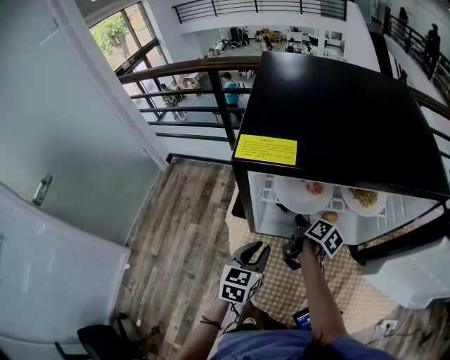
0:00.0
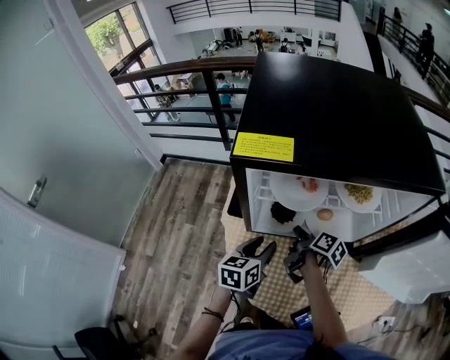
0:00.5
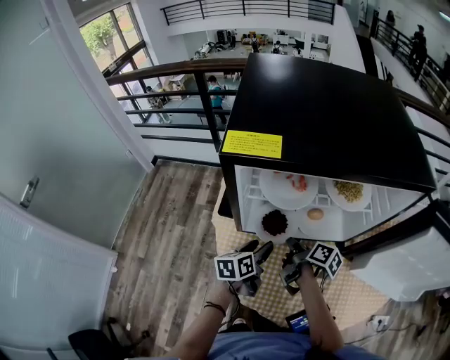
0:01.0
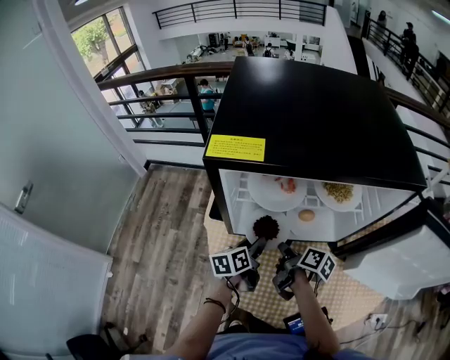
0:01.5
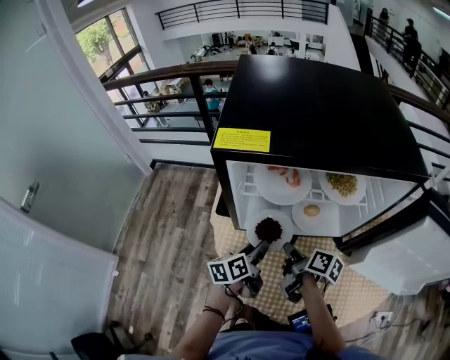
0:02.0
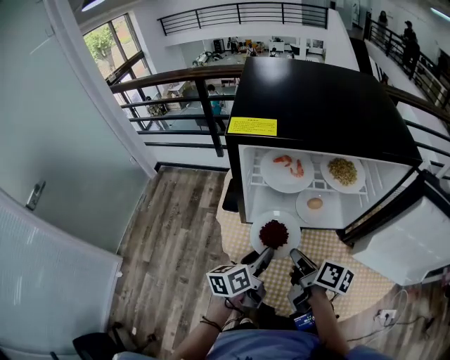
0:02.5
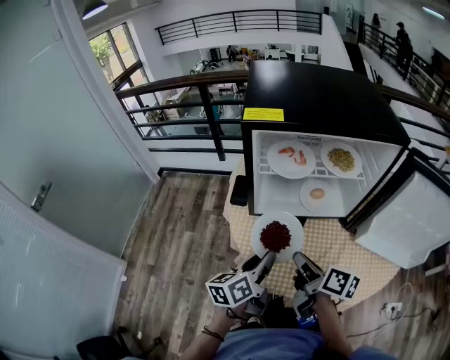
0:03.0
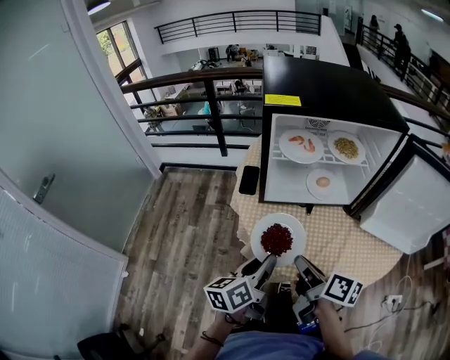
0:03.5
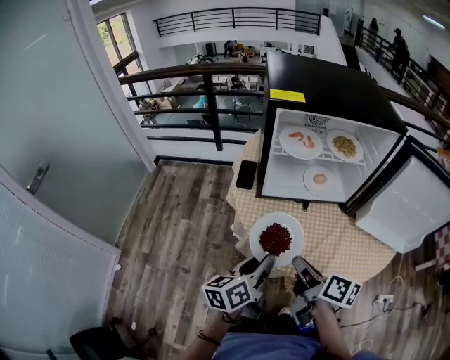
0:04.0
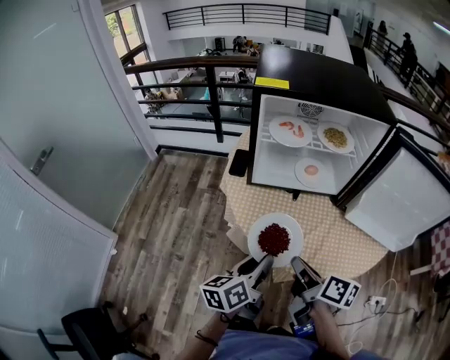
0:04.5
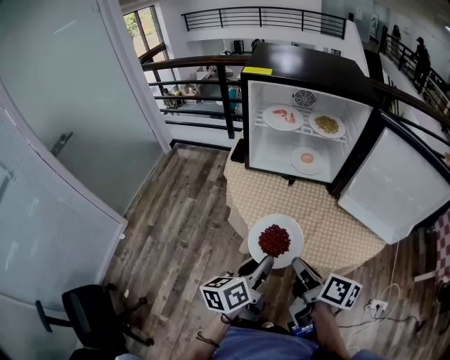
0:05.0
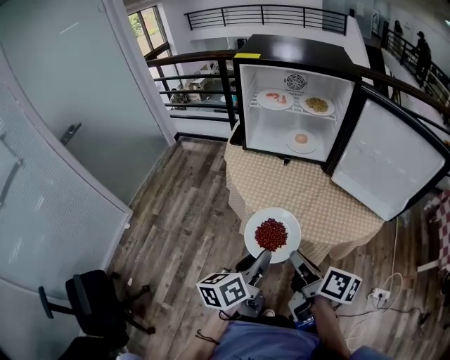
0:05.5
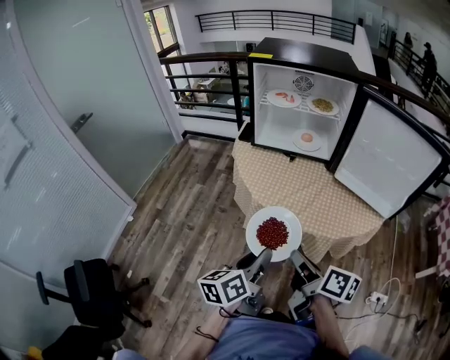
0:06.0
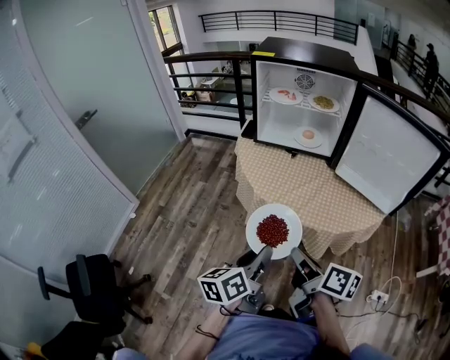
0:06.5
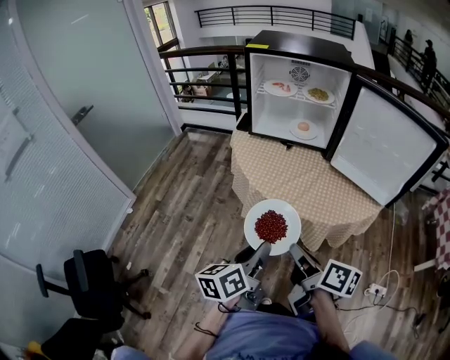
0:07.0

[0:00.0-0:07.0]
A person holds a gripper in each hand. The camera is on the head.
0:00.0 to 0:02.0: The right gripper goes some 10 cm backward; the left gripper changes its angle by about 40 degrees, and opens and closes again.
0:02.0 to 0:03.5: The two grippers go some 25 cm backward and upward.
0:03.5 to 0:05.0: Both grippers move backward and to the right, roughly 20 cm.
0:05.0 to 0:07.0: Both grippers move backward, some 15 cm.

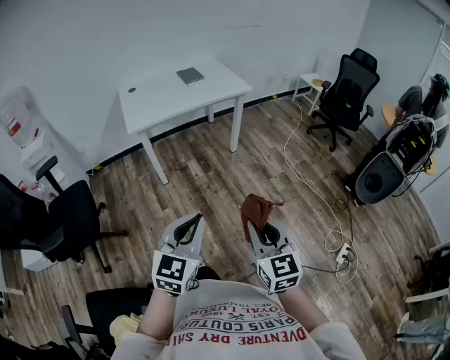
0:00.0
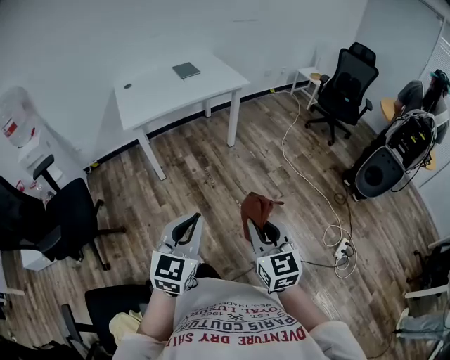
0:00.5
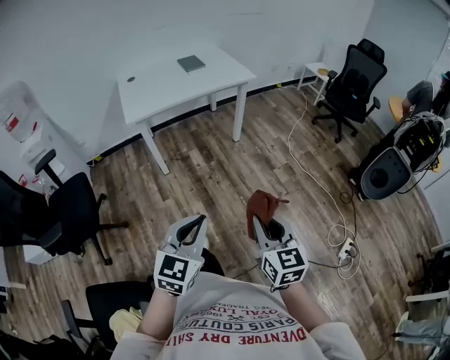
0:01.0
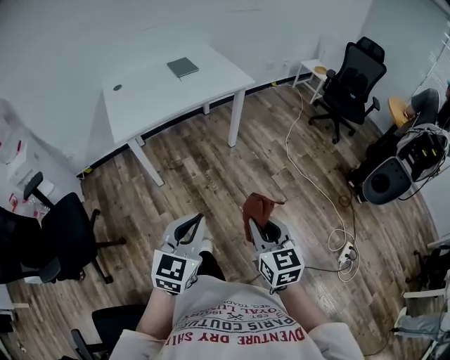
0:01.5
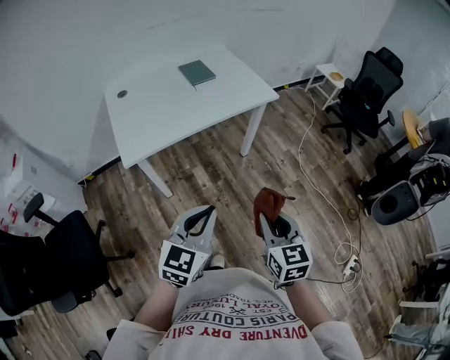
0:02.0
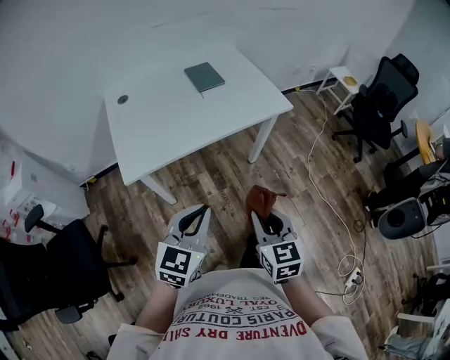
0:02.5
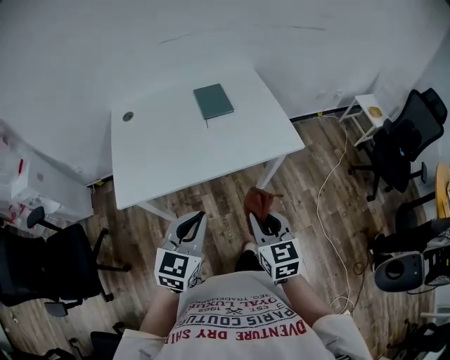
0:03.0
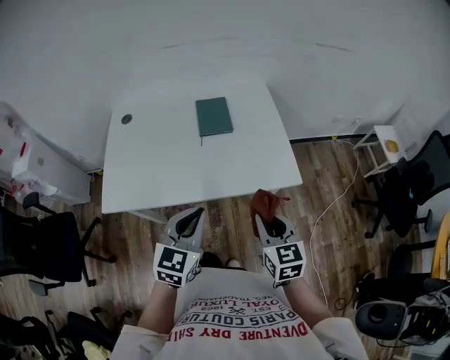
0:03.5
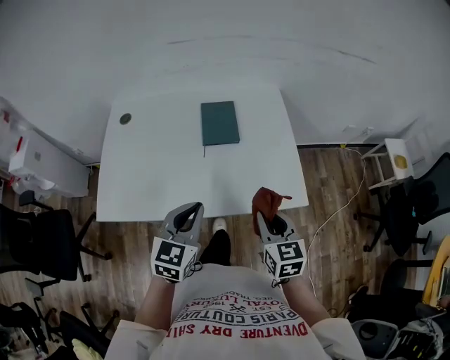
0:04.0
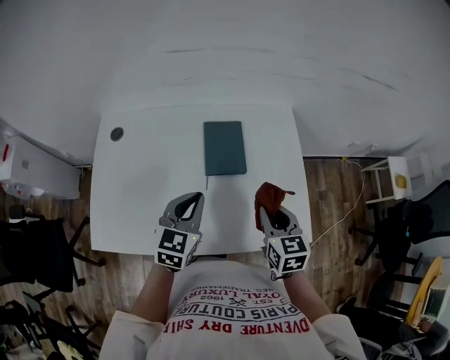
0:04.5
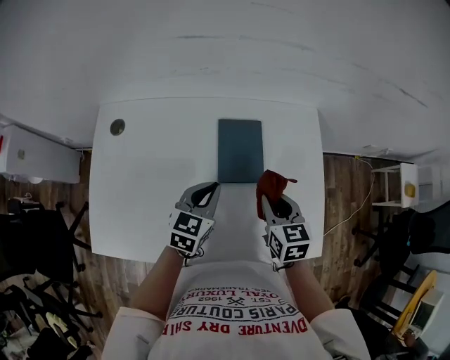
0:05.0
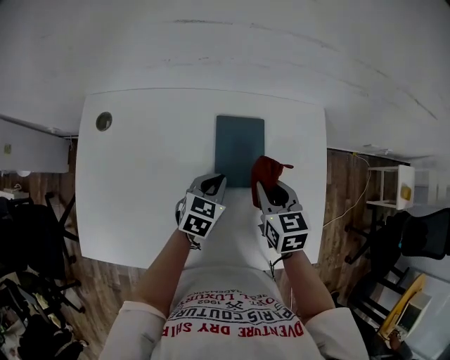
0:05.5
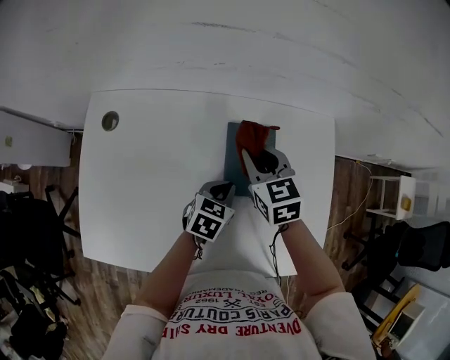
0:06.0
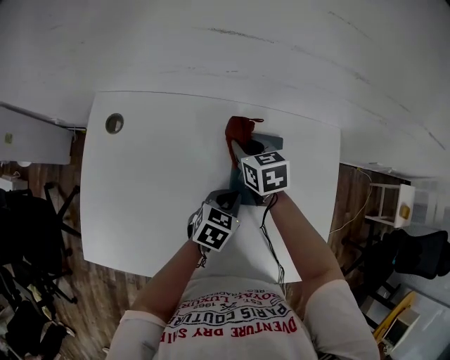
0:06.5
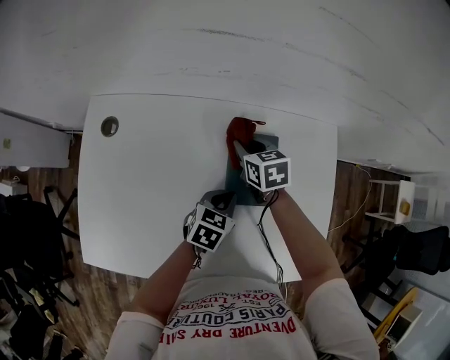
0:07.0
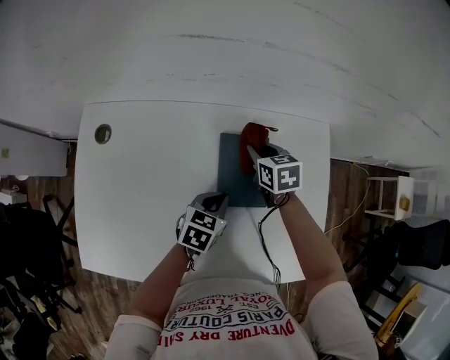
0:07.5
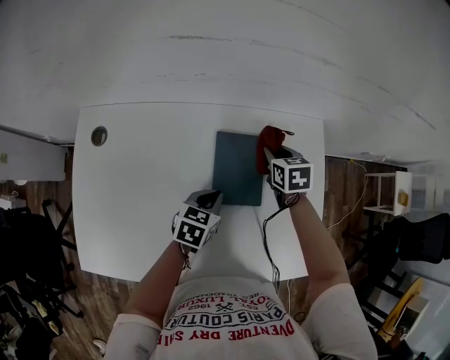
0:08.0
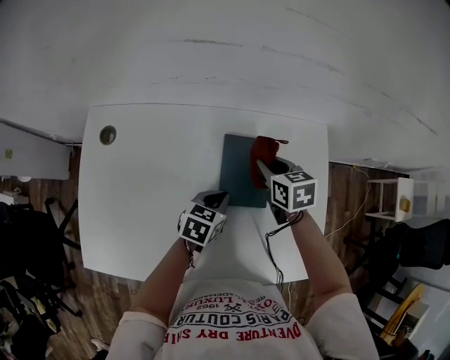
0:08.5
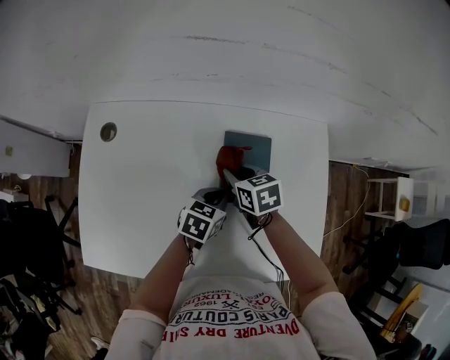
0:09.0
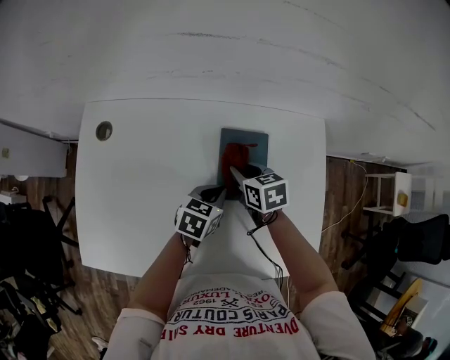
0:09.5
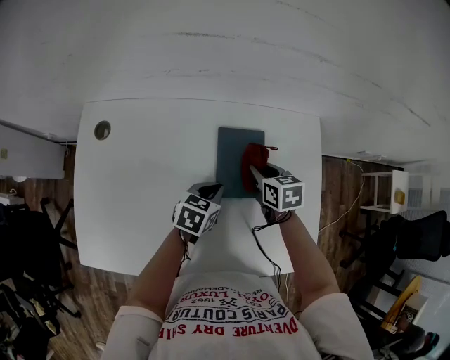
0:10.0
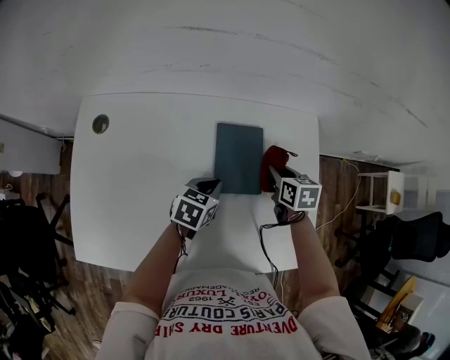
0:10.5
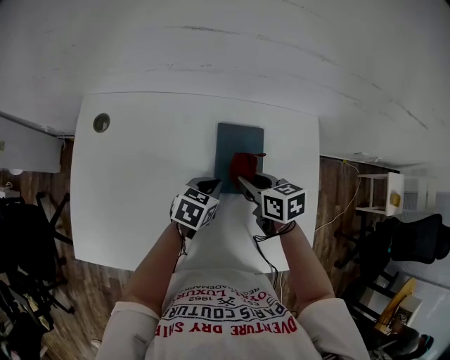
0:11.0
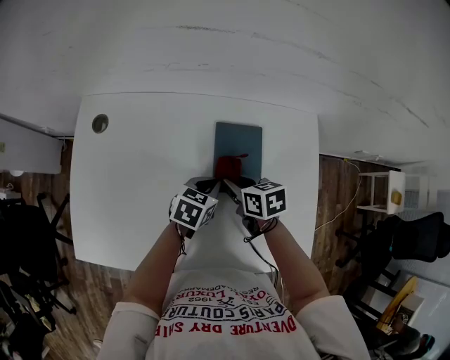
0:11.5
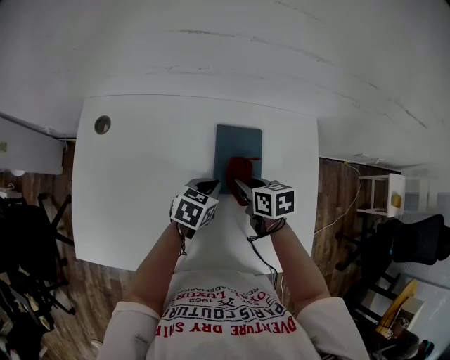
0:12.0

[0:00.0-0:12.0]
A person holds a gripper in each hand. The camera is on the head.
0:00.0 to 0:02.0: The two grippers go some 35 cm forward.
0:02.0 to 0:04.0: The pair of grippers is taken about 50 cm. The left gripper rotates about 30 degrees. Meanwhile the right gripper turns by approximately 20 degrees.
0:04.0 to 0:06.0: The right gripper heads forward and to the left, covering about 50 cm, and swivels roughly 20 degrees. Meanwhile the left gripper heads forward and downward, covering roughly 40 cm, and swivels about 30 degrees.
0:06.0 to 0:08.0: The right gripper shifts about 15 cm to the right, downward and forward, and turns by approximately 20 degrees.
0:08.0 to 0:10.0: The right gripper is displaced backward by some 10 cm, and goes to the left and returns, approximately 15 cm each way.
0:10.0 to 0:12.0: The right gripper goes some 5 cm backward, and moves about 5 cm to the right and comes back.

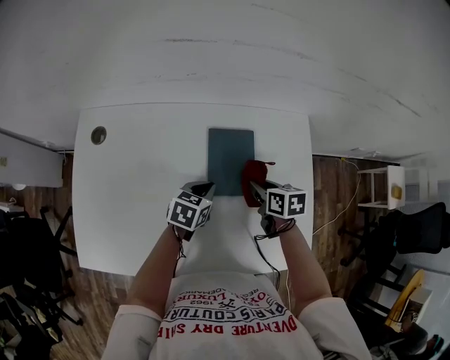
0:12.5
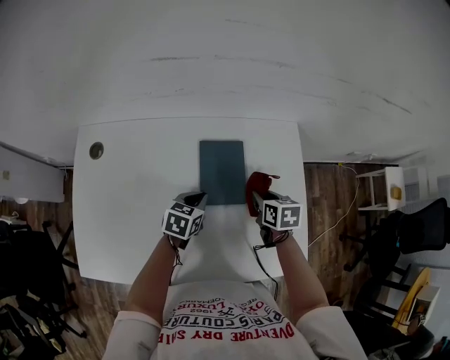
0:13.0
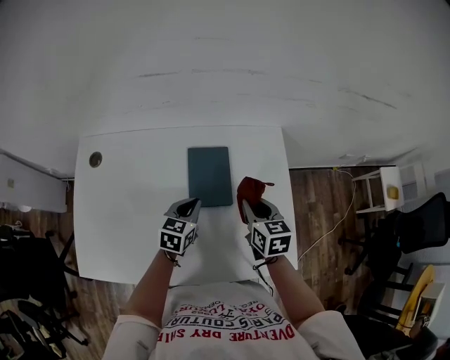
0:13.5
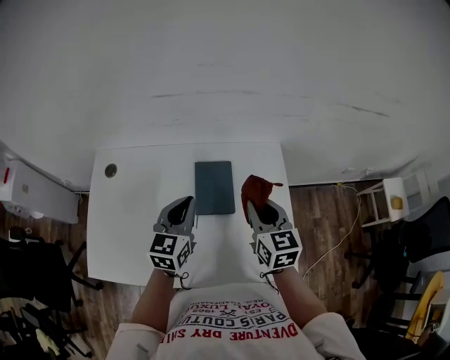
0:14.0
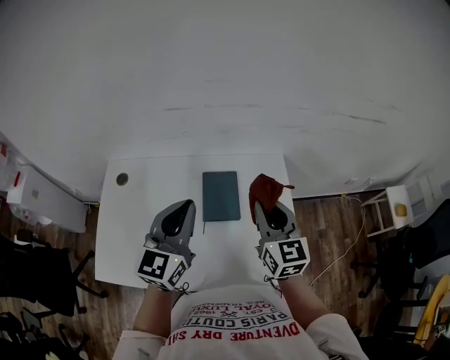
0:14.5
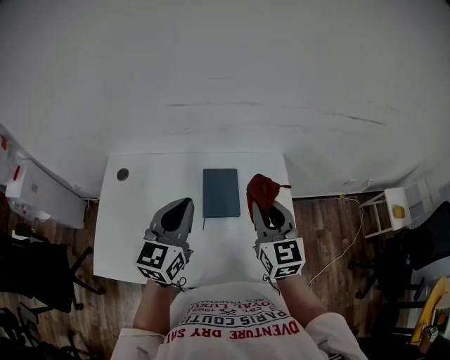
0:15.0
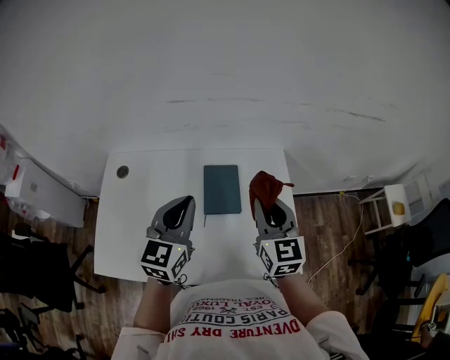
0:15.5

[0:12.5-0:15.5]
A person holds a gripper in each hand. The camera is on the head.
0:12.5 to 0:14.0: Both grippers travel together upward, approximately 20 cm. The right gripper turns by some 40 degrees; the left gripper rotates approximately 40 degrees.
0:14.0 to 0:15.5: The left gripper is displaced upward and backward by about 10 cm. Meanwhile the right gripper heads upward, covering some 5 cm.

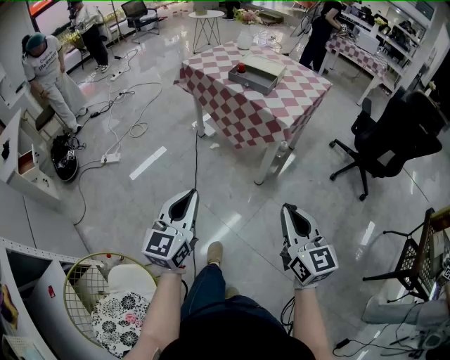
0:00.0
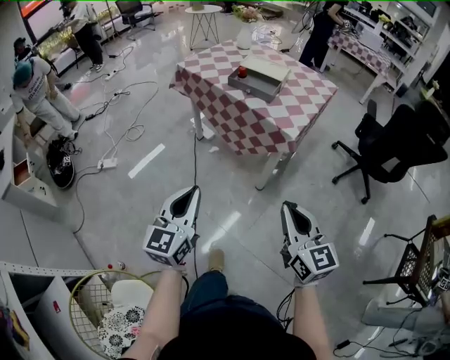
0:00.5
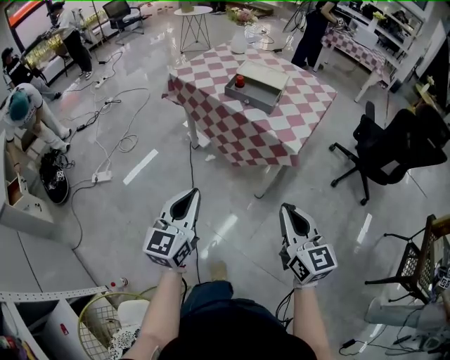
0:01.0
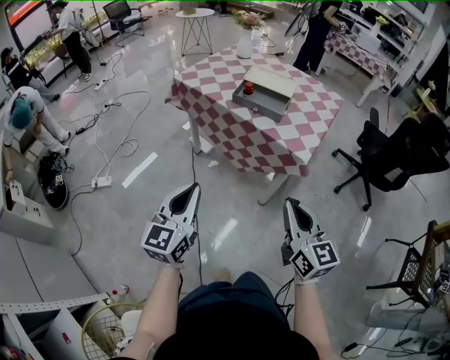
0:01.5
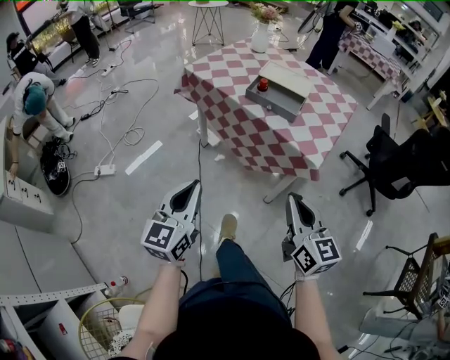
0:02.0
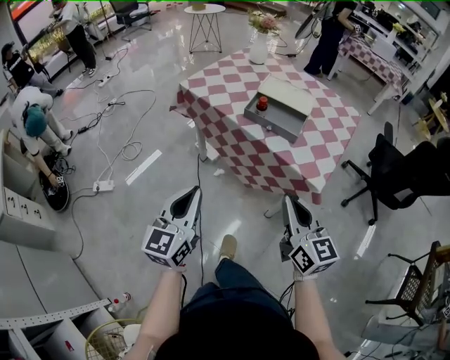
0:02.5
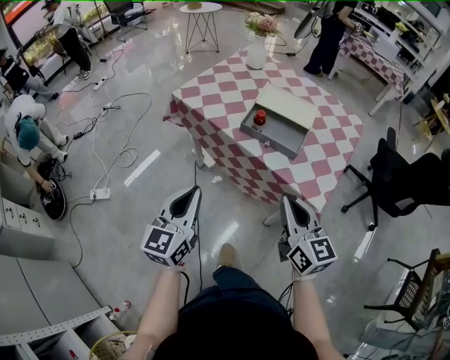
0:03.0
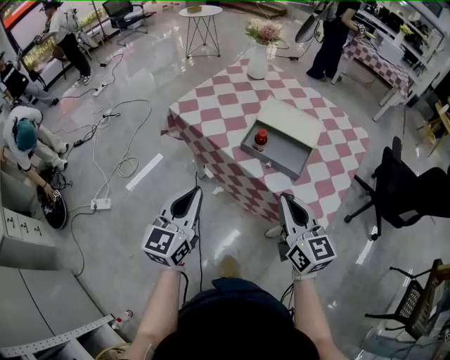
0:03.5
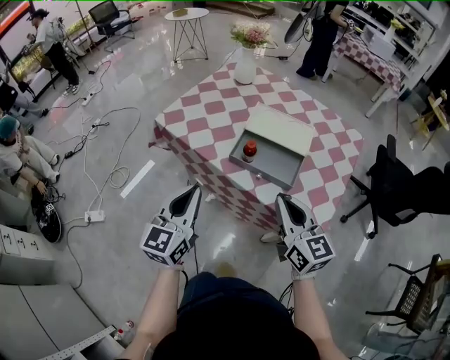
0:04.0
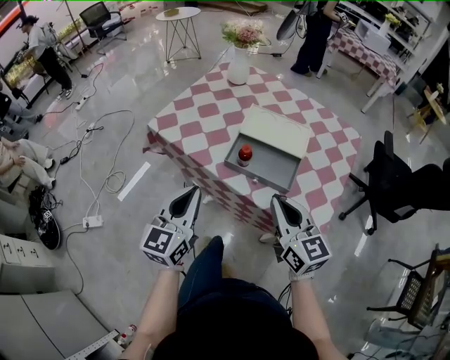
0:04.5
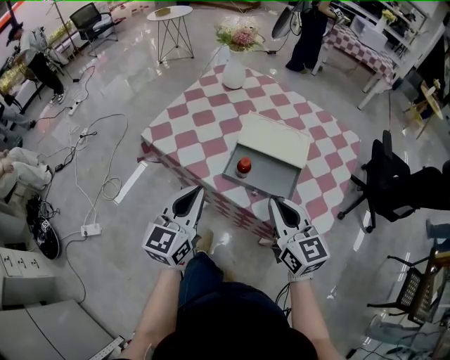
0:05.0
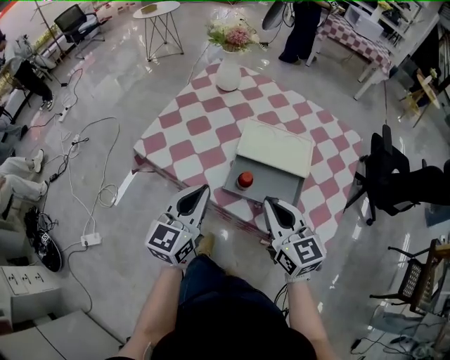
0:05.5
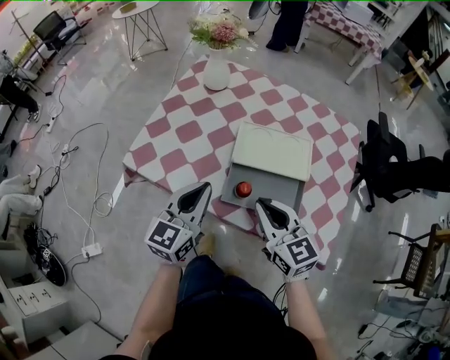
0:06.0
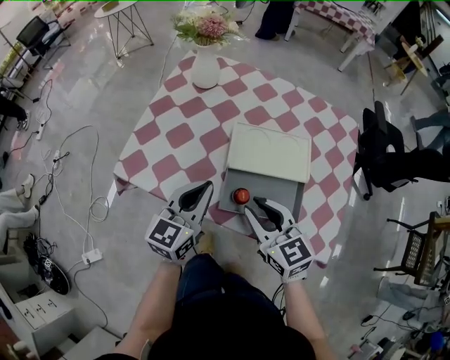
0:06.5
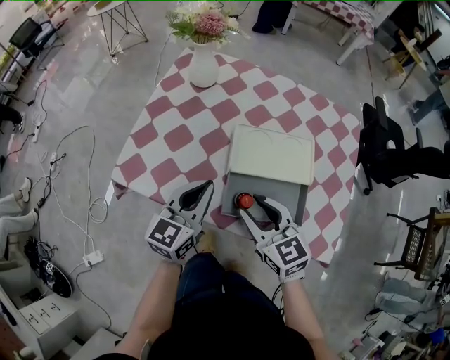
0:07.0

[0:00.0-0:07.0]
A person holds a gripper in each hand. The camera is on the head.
0:00.0 to 0:02.0: Both grippers travel together forward, about 30 cm.
0:02.0 to 0:03.5: Both grippers travel together forward, roughly 30 cm.
0:03.5 to 0:05.0: Both grippers travel together forward, roughly 15 cm.
0:05.0 to 0:07.0: The left gripper is displaced forward by approximately 20 cm, and swivels some 20 degrees. The right gripper moves forward, downward and to the left, about 15 cm, and opens.
